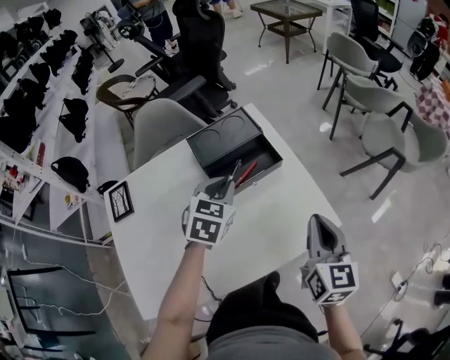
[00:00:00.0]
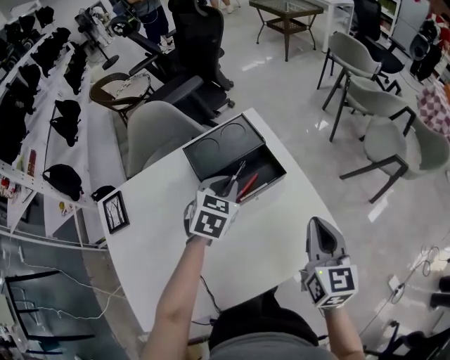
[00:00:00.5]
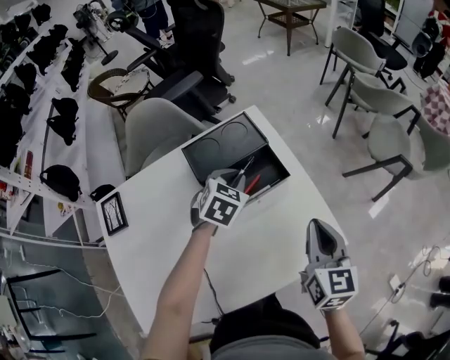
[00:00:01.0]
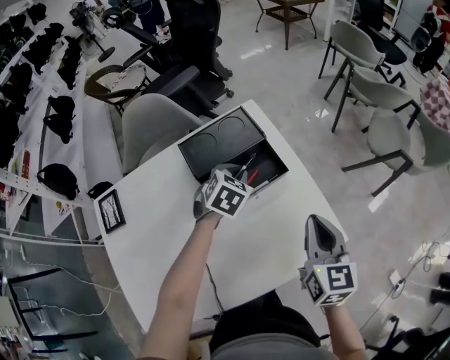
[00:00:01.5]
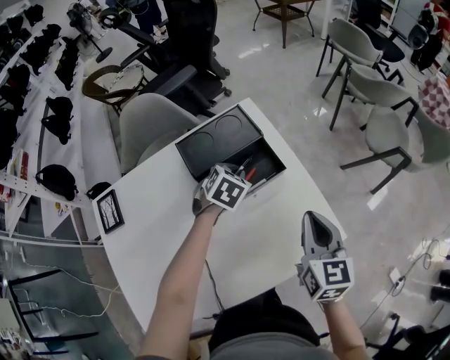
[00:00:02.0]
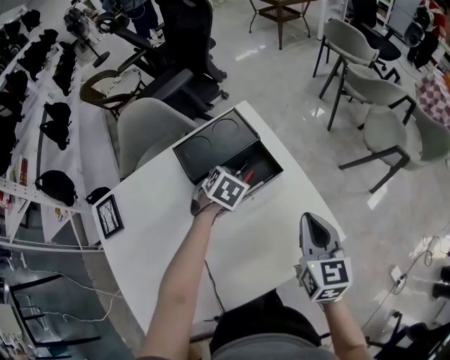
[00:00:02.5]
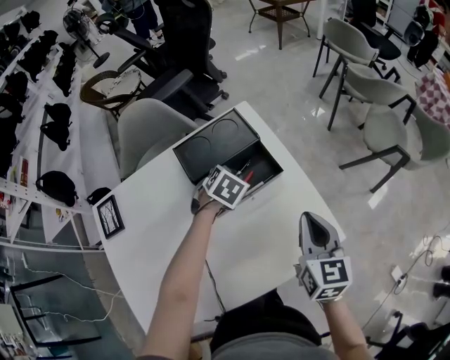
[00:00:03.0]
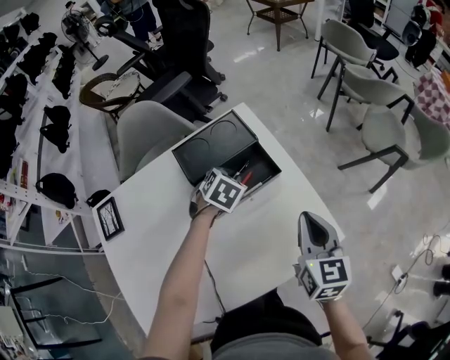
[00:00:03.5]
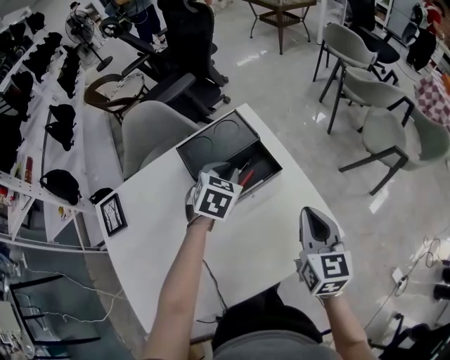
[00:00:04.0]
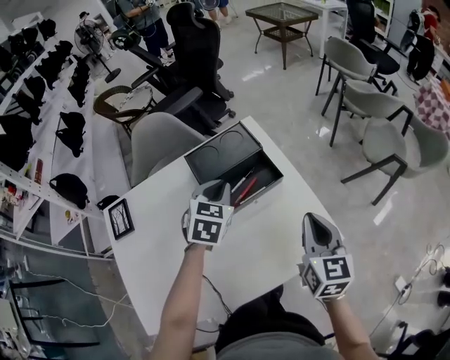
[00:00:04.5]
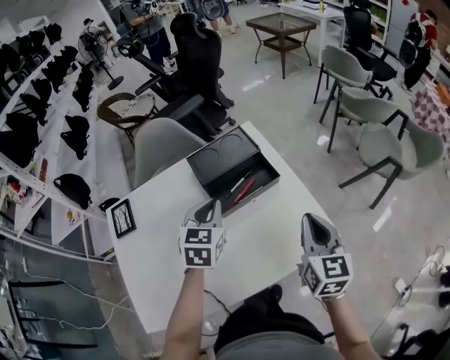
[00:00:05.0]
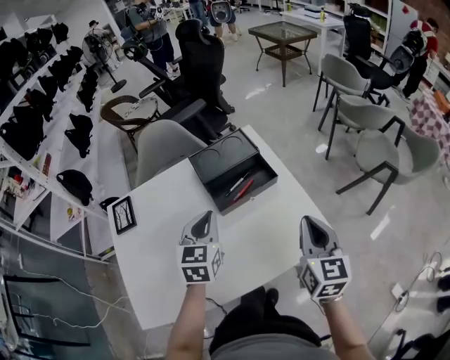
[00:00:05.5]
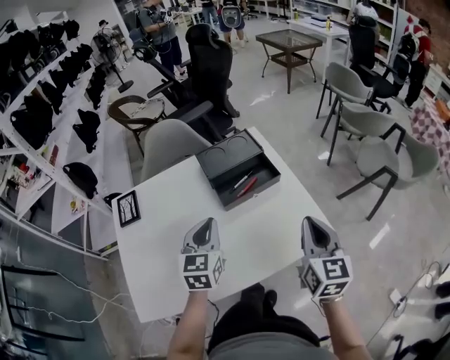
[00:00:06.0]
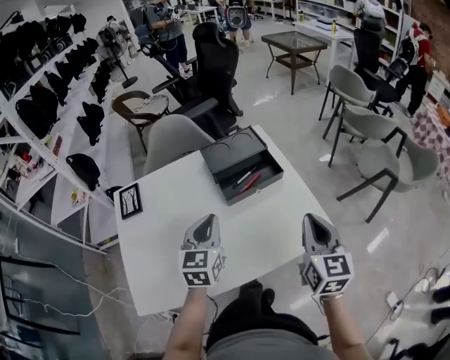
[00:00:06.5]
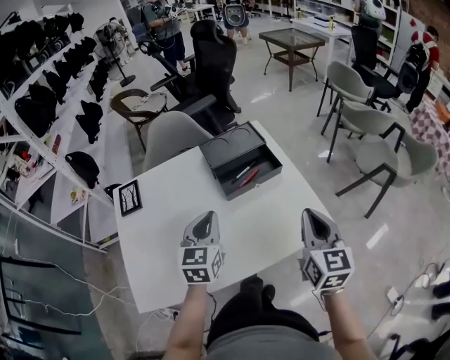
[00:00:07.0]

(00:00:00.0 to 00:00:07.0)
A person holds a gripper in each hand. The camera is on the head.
00:00:00.0 - 00:00:02.0: The left gripper shifts about 15 cm downward and forward, and swivels about 20 degrees, while the right gripper travels forward by about 5 cm.
00:00:02.0 - 00:00:03.5: The grippers move only a little.
00:00:03.5 - 00:00:05.0: The right gripper shifts by roughly 5 cm, while the left gripper goes roughly 20 cm upward and backward, and tilts its fingers roughly 30 degrees upward.
00:00:05.0 - 00:00:07.0: The right gripper moves backward, some 5 cm. The left gripper moves backward, about 10 cm.

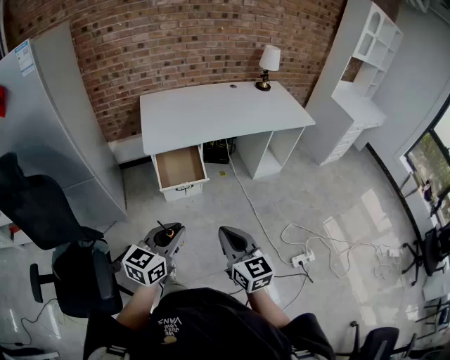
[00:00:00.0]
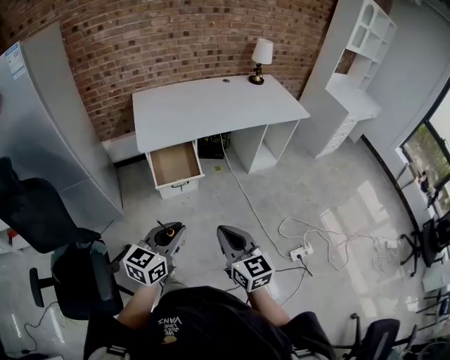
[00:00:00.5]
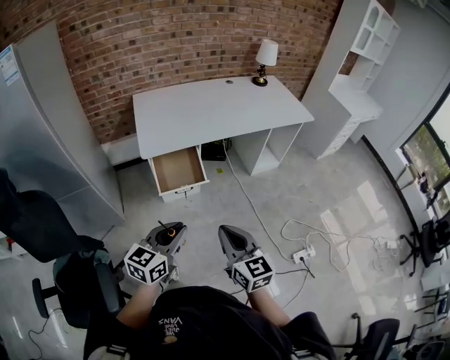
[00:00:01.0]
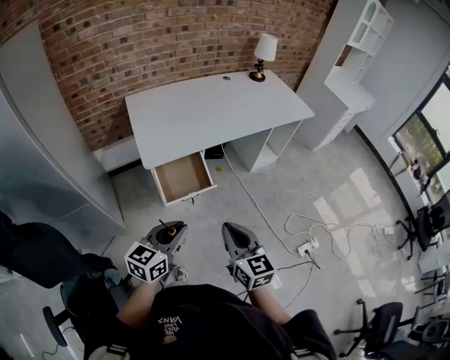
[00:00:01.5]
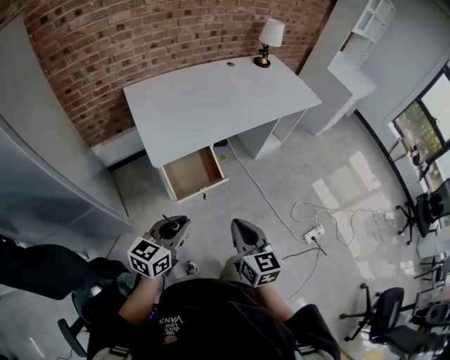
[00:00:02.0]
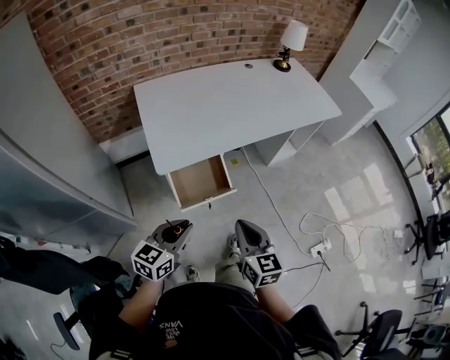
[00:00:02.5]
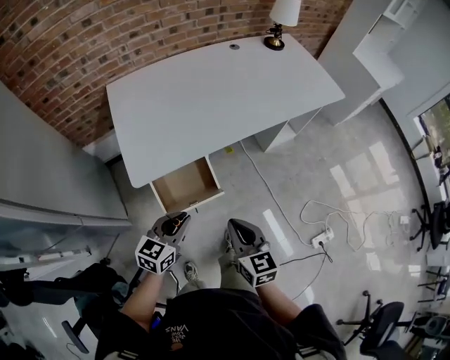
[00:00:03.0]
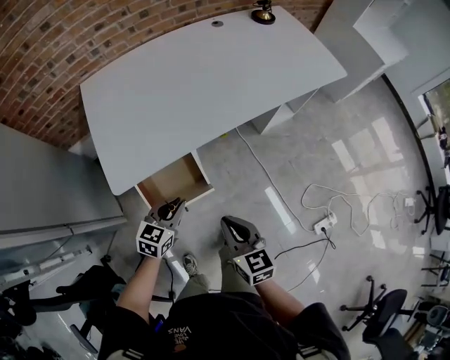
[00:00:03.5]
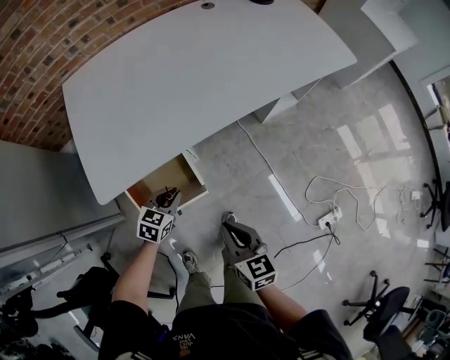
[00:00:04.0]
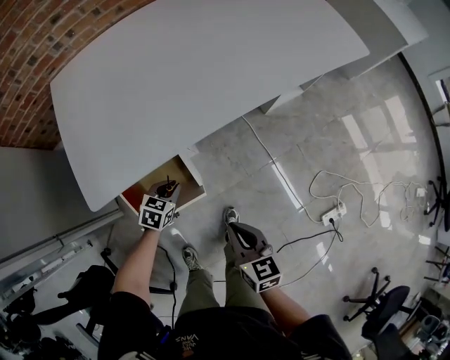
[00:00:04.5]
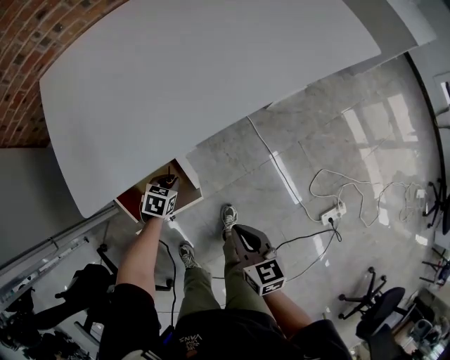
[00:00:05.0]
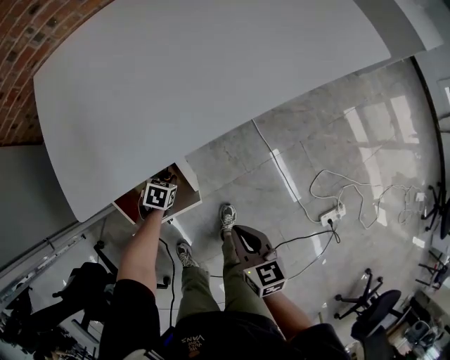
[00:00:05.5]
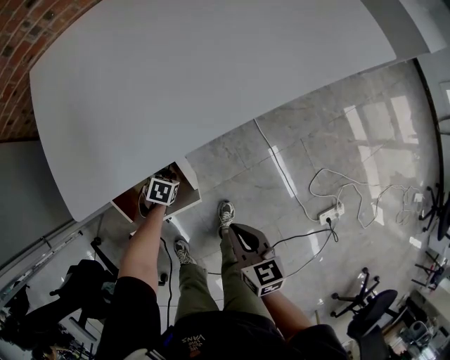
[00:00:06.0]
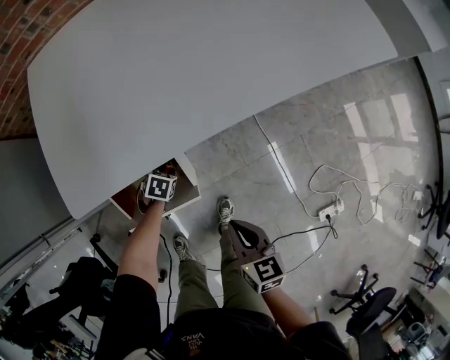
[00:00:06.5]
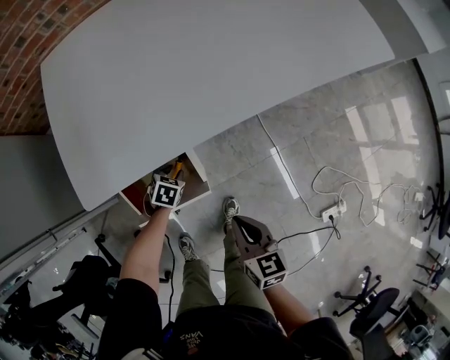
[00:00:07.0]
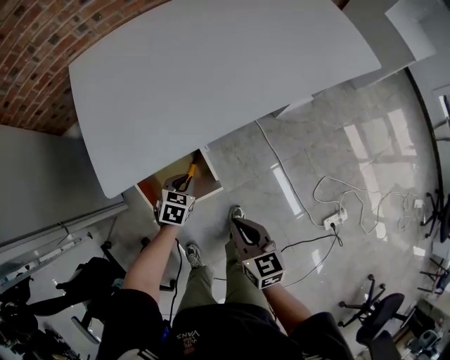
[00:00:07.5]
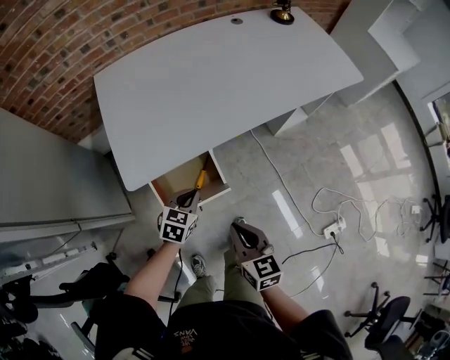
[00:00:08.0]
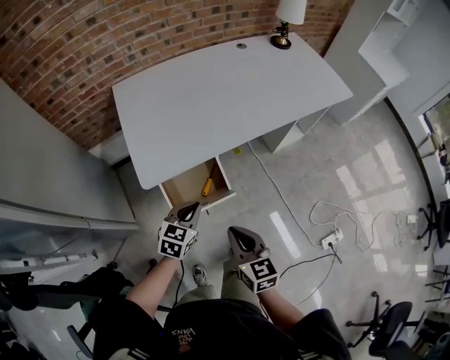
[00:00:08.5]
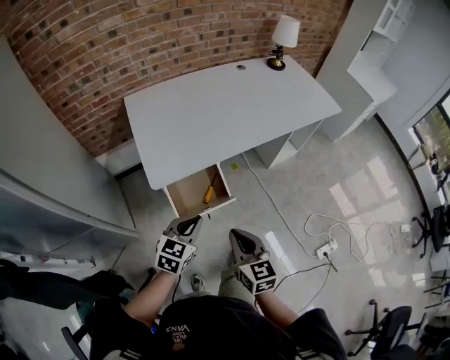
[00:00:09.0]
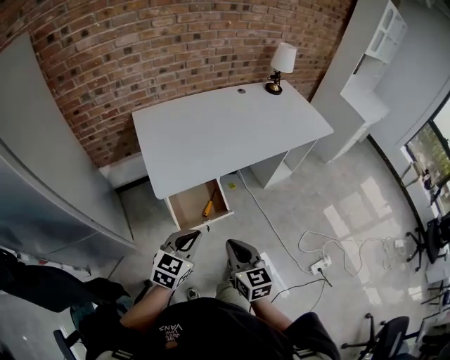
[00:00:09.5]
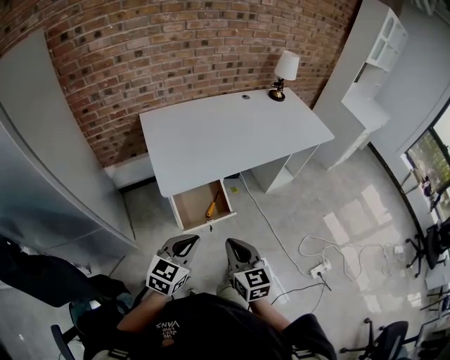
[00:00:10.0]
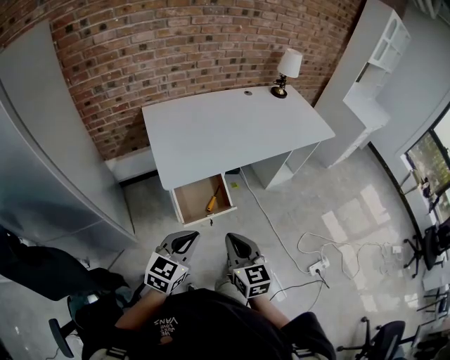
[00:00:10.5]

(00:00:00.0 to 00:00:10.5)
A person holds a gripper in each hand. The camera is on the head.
00:00:00.0 - 00:00:02.0: Both grippers move to the left and forward, roughly 25 cm.
00:00:02.0 - 00:00:04.0: The left gripper moves forward and downward, some 40 cm, and tips its fingers downward by roughly 30 degrees. Meanwhile the right gripper shifts roughly 35 cm forward, downward and to the right.
00:00:04.0 - 00:00:06.5: The right gripper goes some 10 cm downward. Meanwhile the left gripper travels downward by some 20 cm, and angles its fingers downward, by roughly 30 degrees.
00:00:06.5 - 00:00:08.5: The right gripper ends up approximately 30 cm from where it was; the left gripper shifts about 35 cm upward, tips its fingers upward by about 40 degrees, and closes.
00:00:08.5 - 00:00:10.5: The right gripper shifts some 15 cm backward, upward and to the left; the left gripper goes some 25 cm backward and upward.

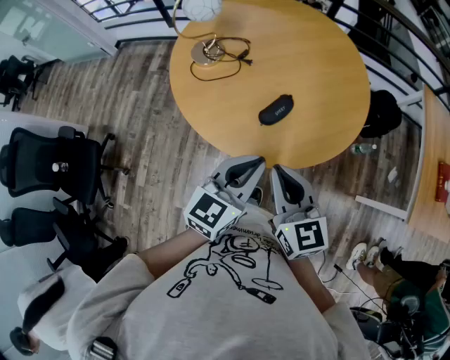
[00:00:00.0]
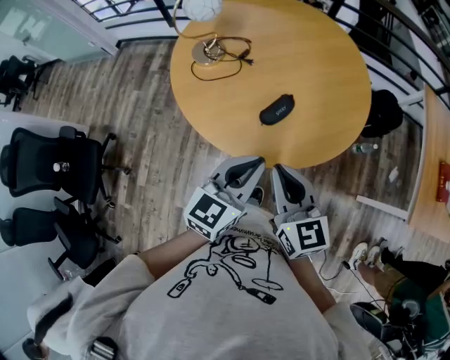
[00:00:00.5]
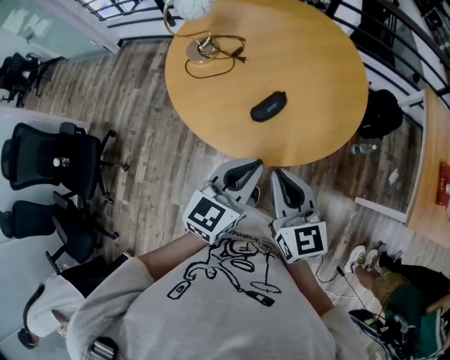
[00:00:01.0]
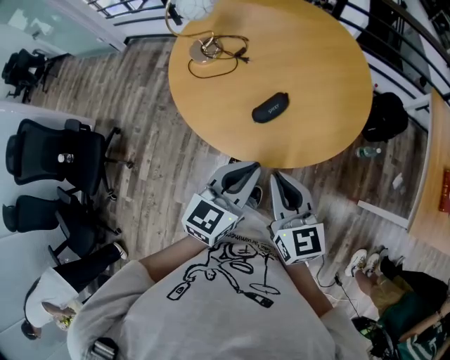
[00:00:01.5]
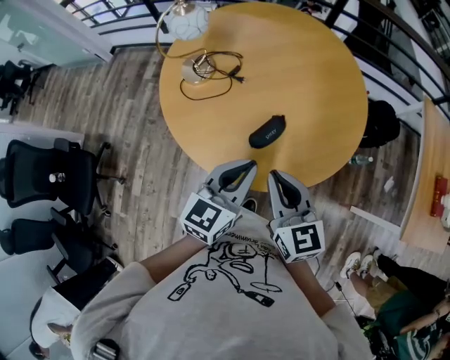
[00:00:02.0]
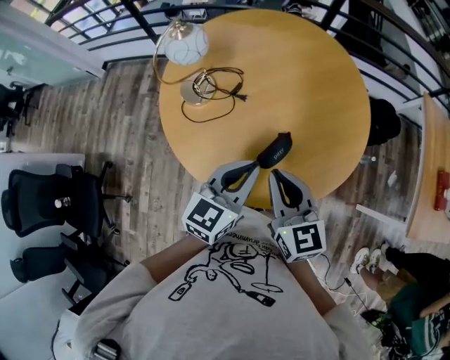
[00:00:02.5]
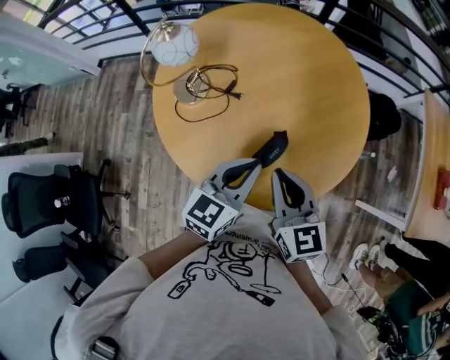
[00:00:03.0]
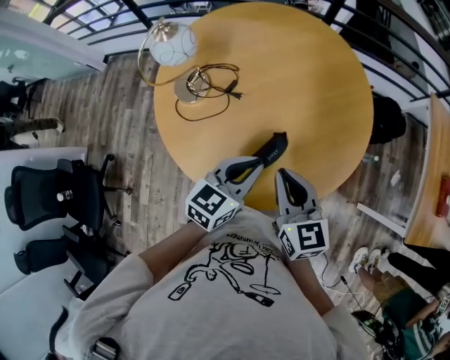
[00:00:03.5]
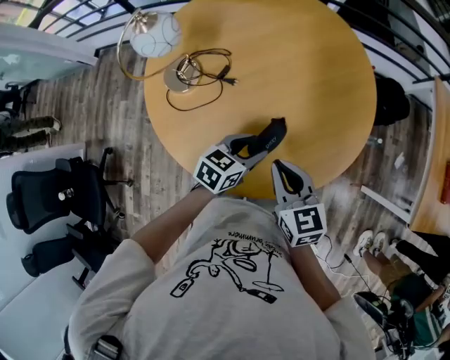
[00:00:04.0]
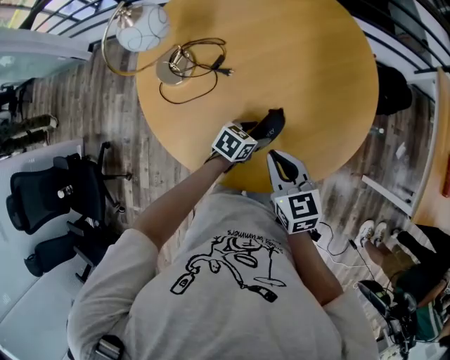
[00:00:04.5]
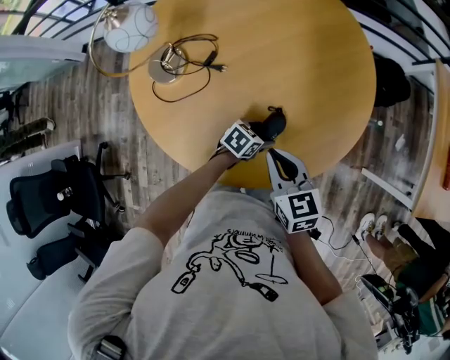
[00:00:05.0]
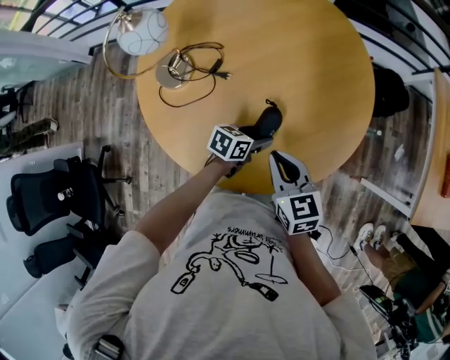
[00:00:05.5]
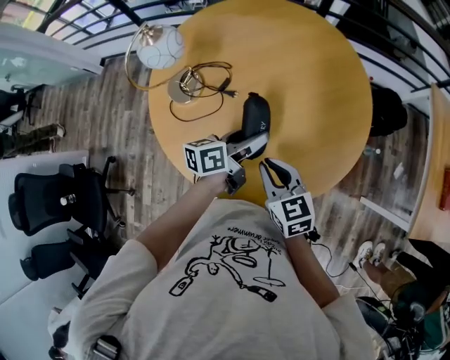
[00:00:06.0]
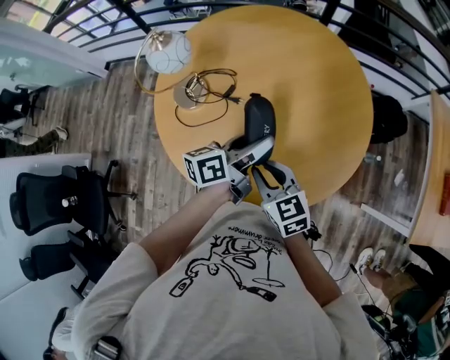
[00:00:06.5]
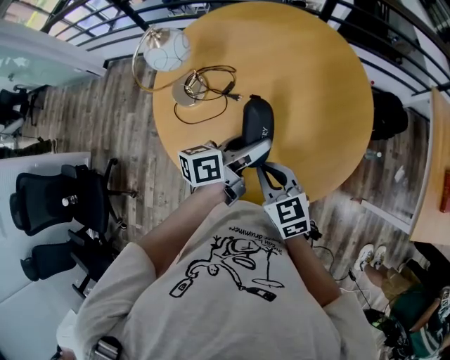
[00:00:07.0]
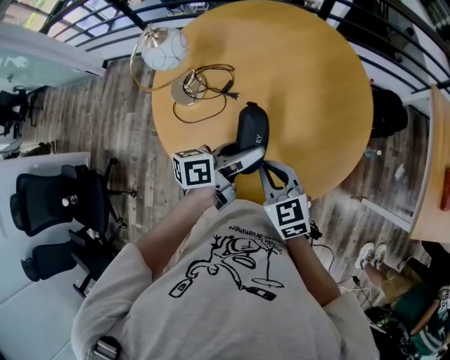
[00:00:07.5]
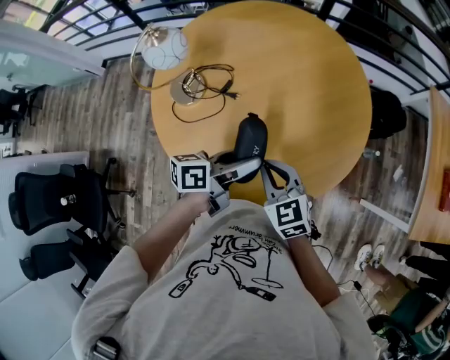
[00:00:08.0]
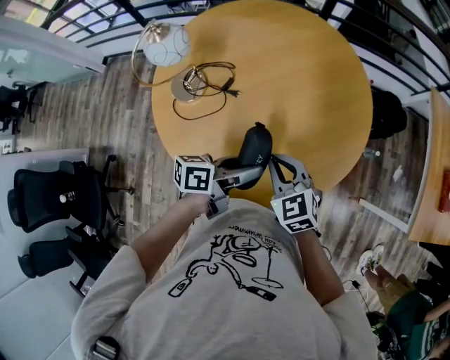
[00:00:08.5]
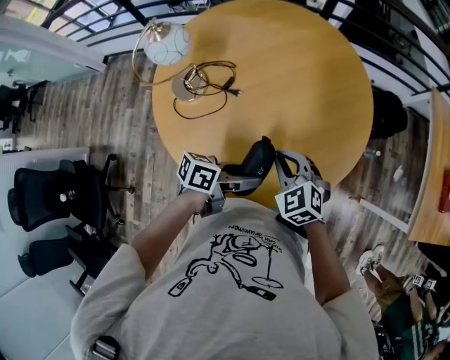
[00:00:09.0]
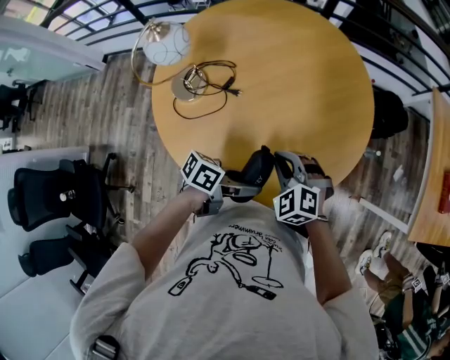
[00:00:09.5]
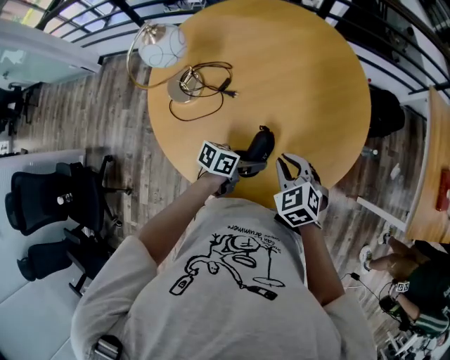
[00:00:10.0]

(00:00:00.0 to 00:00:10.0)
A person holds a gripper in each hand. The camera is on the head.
00:00:00.0 - 00:00:02.0: Both grippers travel together forward, some 10 cm.
00:00:02.0 - 00:00:04.0: The right gripper goes about 15 cm forward and downward; the left gripper travels downward and forward by approximately 20 cm, turns by some 30 degrees, and opens up.
00:00:04.0 - 00:00:06.0: The left gripper goes approximately 5 cm forward, moves some 15 cm downward and comes back, and changes its angle by some 40 degrees.
00:00:06.0 - 00:00:08.0: The left gripper travels backward by about 5 cm.
00:00:08.0 - 00:00:10.0: The right gripper is displaced downward by roughly 5 cm, and changes its angle by roughly 20 degrees, while the left gripper goes about 15 cm downward, and changes its angle by approximately 20 degrees.
